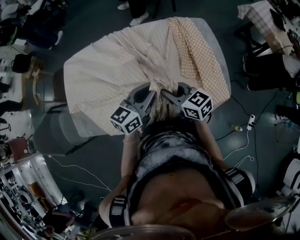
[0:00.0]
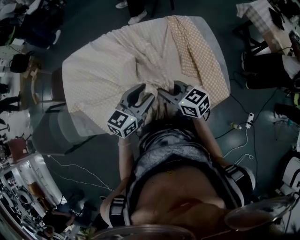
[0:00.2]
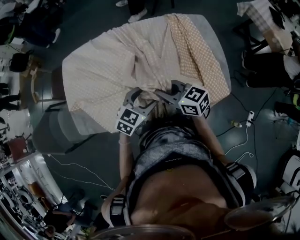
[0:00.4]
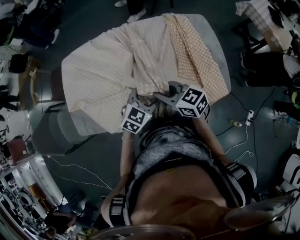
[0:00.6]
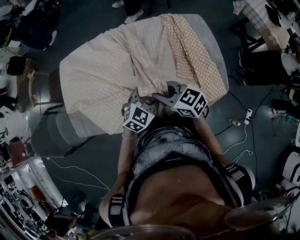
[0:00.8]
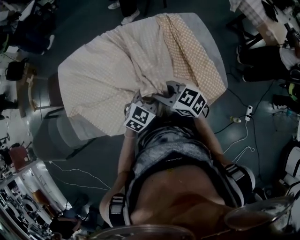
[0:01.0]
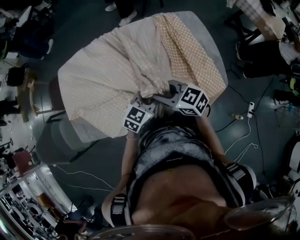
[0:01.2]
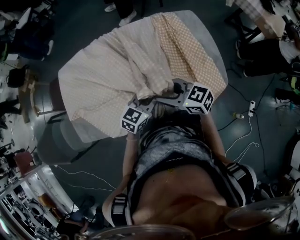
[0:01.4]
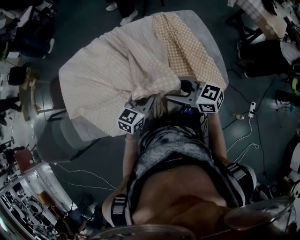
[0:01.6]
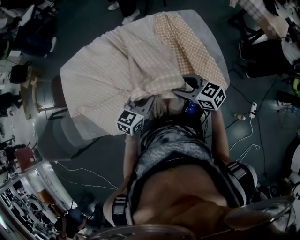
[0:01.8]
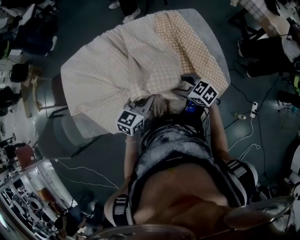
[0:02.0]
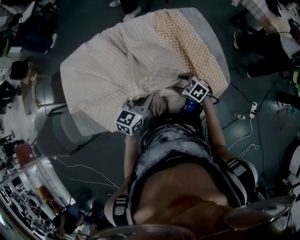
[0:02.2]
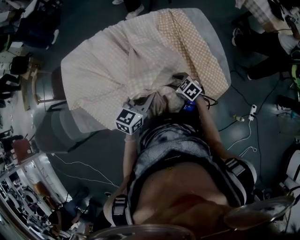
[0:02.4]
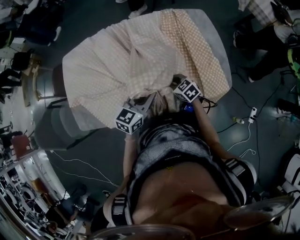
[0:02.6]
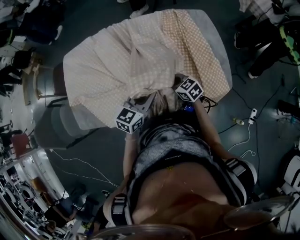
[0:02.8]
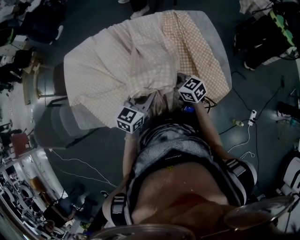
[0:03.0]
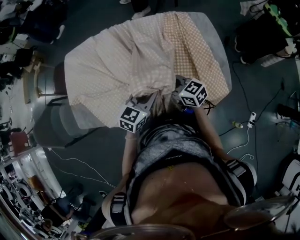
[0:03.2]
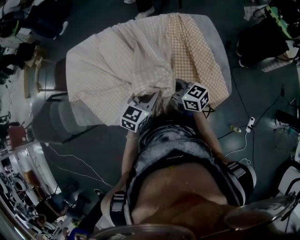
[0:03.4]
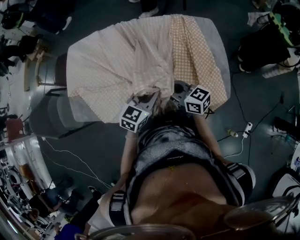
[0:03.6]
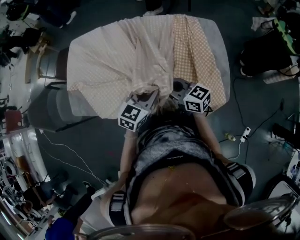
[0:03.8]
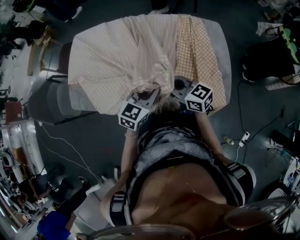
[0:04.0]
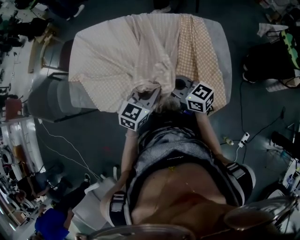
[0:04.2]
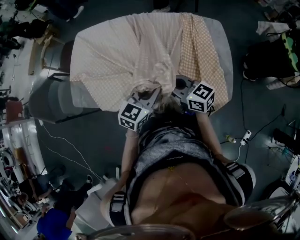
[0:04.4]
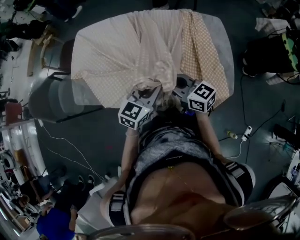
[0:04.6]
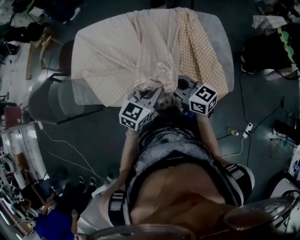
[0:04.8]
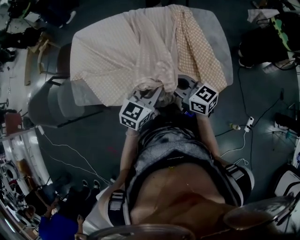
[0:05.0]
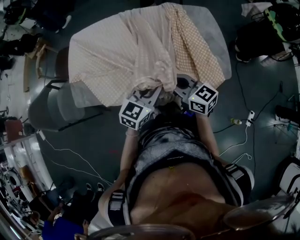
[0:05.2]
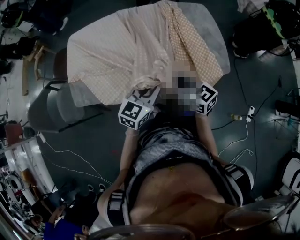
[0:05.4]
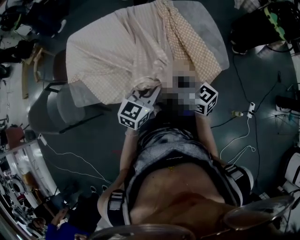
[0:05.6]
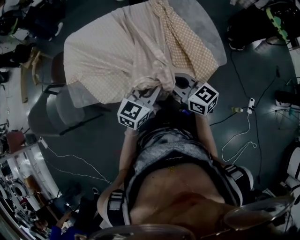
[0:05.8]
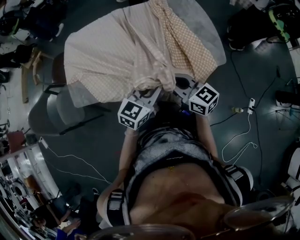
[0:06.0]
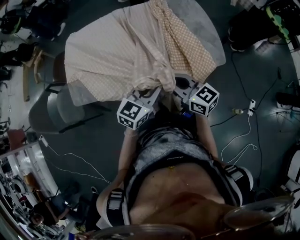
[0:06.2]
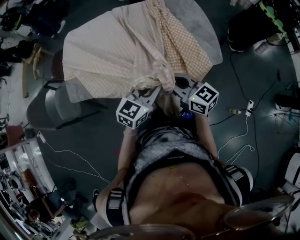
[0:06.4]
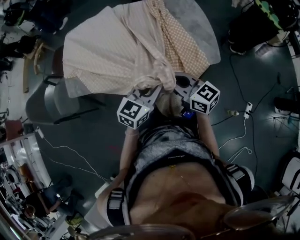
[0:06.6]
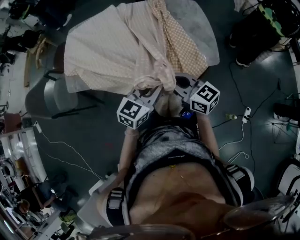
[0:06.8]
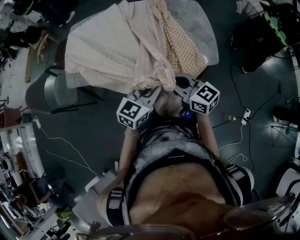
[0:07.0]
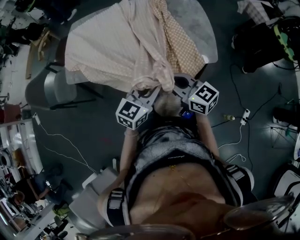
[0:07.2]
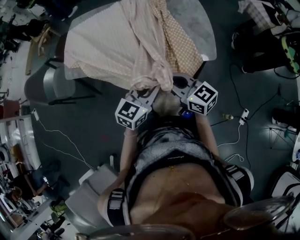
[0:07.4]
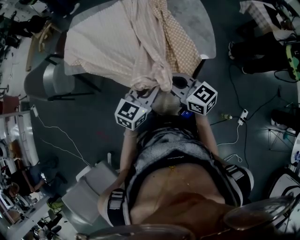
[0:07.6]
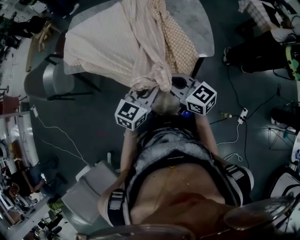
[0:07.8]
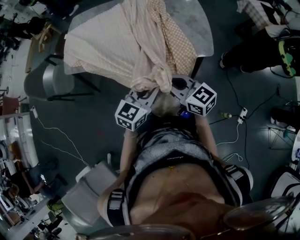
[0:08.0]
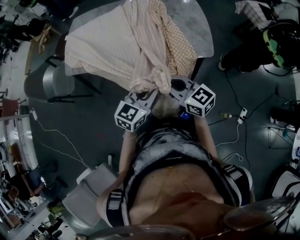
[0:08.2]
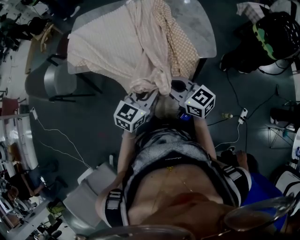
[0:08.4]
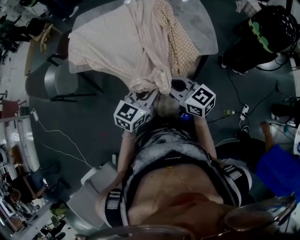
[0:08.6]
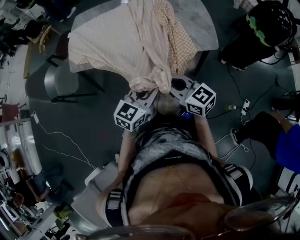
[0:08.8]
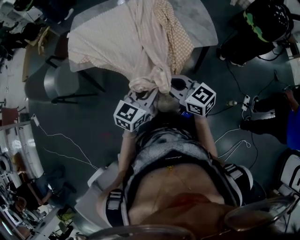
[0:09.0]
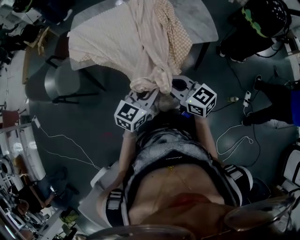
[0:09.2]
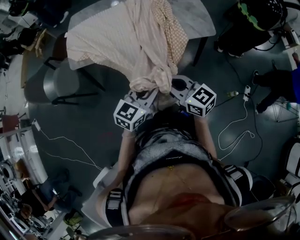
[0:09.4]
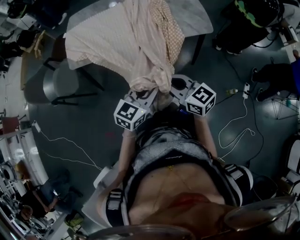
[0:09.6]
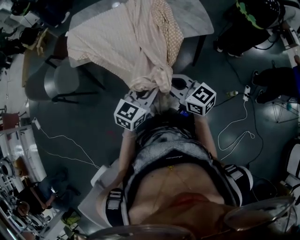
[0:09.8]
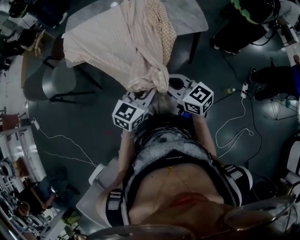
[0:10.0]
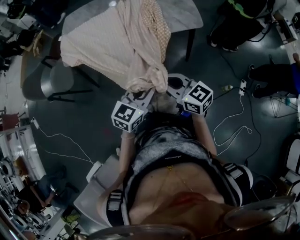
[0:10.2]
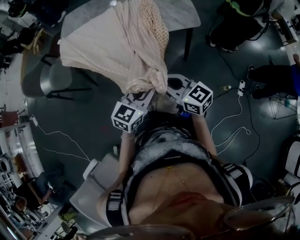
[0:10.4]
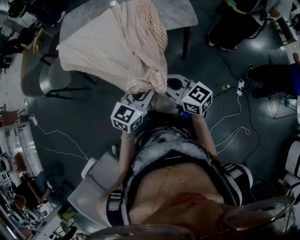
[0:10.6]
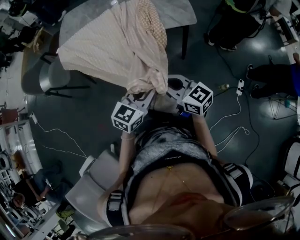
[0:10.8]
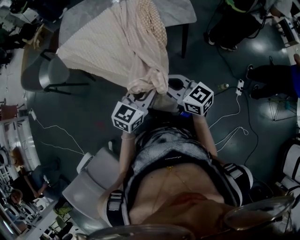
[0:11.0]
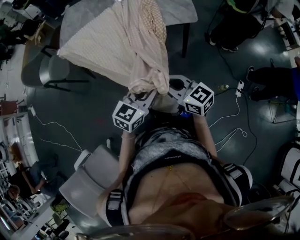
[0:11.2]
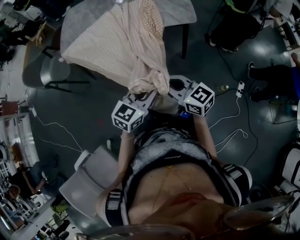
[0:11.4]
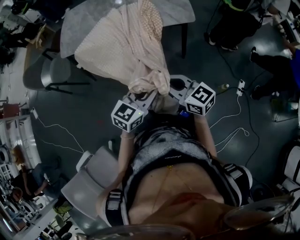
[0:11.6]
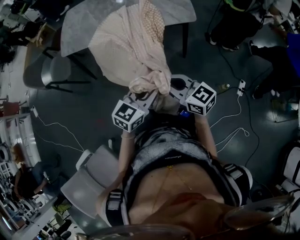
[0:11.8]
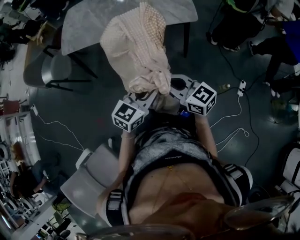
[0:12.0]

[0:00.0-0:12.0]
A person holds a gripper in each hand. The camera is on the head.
0:00.0 to 0:01.6: The left gripper heads downward, covering some 10 cm, and opens, then closes once more, while the right gripper shifts by roughly 5 cm, and opens its fingers.
0:01.6 to 0:03.0: The right gripper shifts approximately 10 cm downward, and closes its fingers.
0:03.0 to 0:04.4: The right gripper shifts about 10 cm upward and backward.
0:04.4 to 0:06.0: The two grippers go roughly 15 cm backward. The right gripper changes its angle by roughly 20 degrees.
0:06.0 to 0:07.6: Both grippers travel together backward and to the right, some 15 cm.
0:07.6 to 0:09.0: The two grippers go approximately 15 cm to the left and backward.
0:09.0 to 0:10.4: Both grippers travel together backward and to the right, approximately 15 cm.
0:10.4 to 0:12.0: Both grippers move backward and to the right, roughly 10 cm.

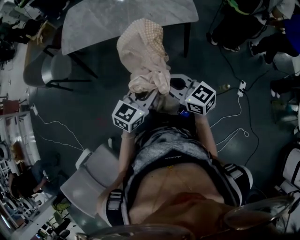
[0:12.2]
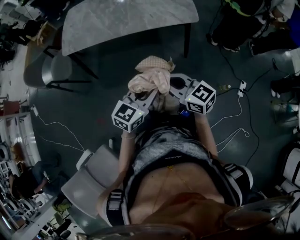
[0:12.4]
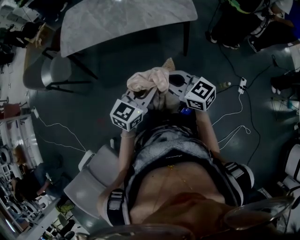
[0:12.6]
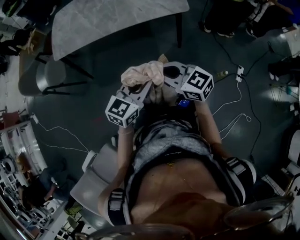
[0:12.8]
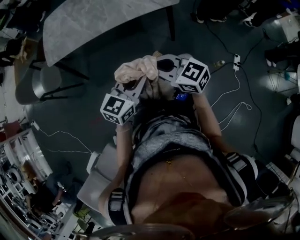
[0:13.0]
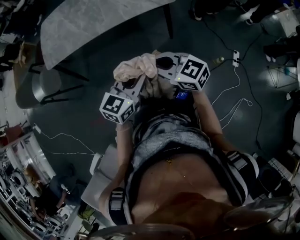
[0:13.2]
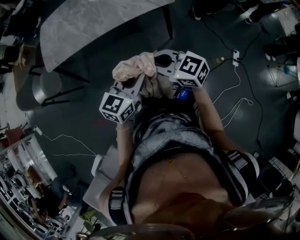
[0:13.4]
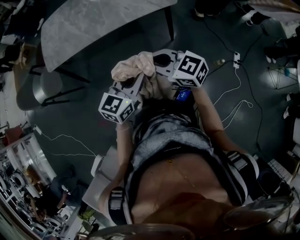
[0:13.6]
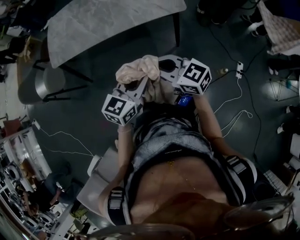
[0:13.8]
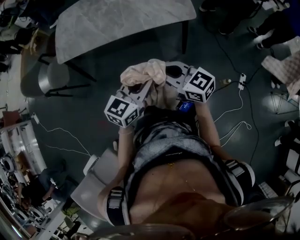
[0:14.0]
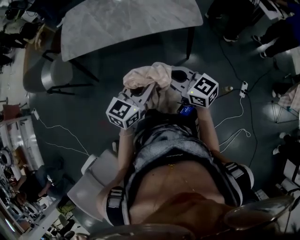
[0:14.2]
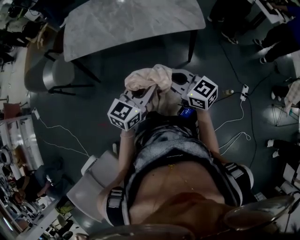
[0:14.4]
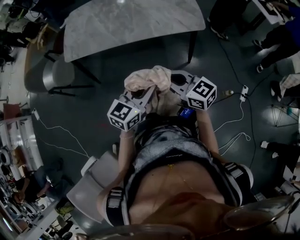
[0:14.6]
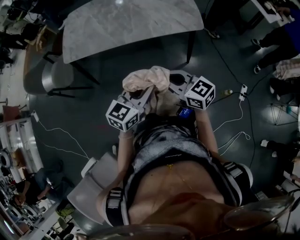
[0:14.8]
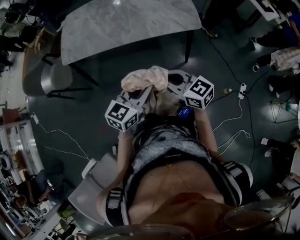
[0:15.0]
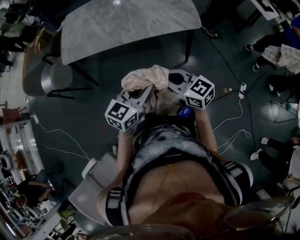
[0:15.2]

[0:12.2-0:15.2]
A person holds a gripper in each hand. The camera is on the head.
0:12.2 to 0:13.8: The two grippers go about 5 cm forward.
0:13.8 to 0:15.2: There are only small adjustments of the grippers.

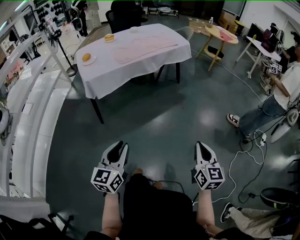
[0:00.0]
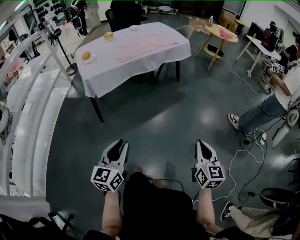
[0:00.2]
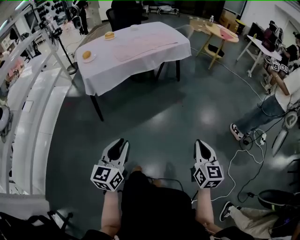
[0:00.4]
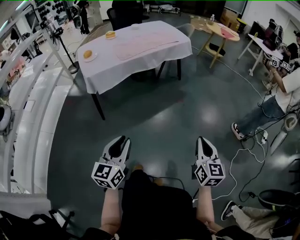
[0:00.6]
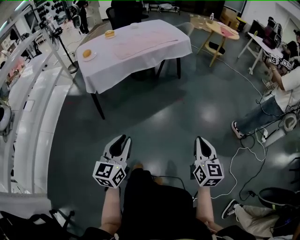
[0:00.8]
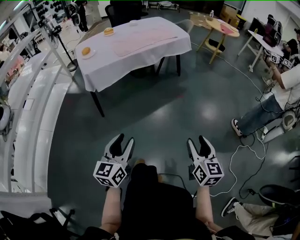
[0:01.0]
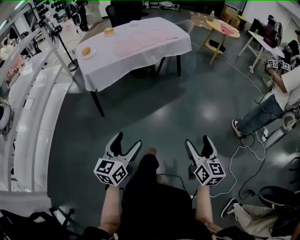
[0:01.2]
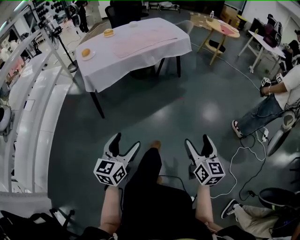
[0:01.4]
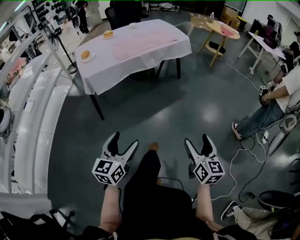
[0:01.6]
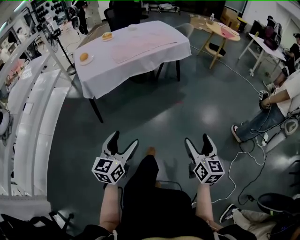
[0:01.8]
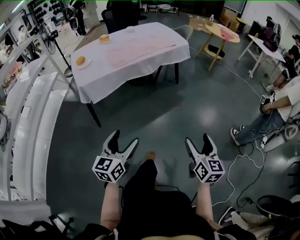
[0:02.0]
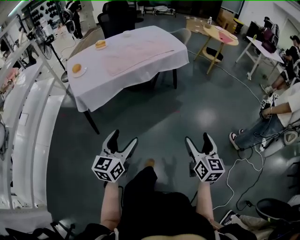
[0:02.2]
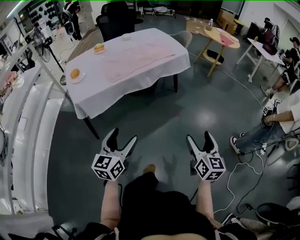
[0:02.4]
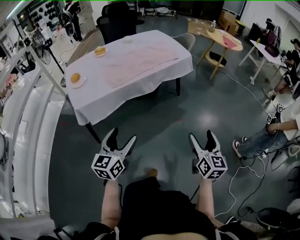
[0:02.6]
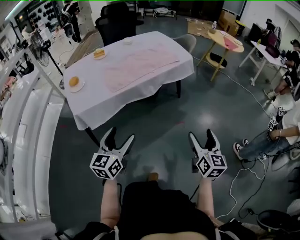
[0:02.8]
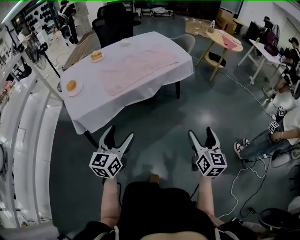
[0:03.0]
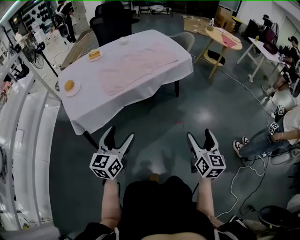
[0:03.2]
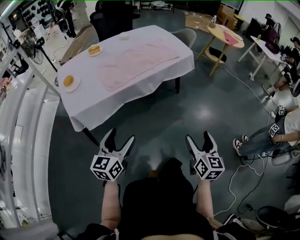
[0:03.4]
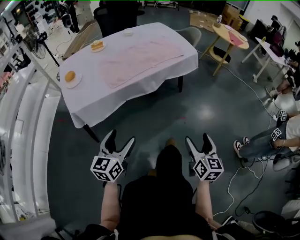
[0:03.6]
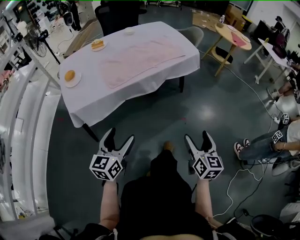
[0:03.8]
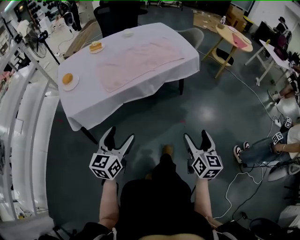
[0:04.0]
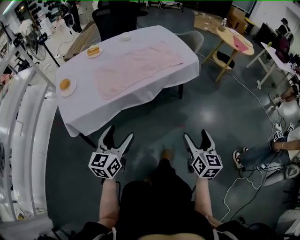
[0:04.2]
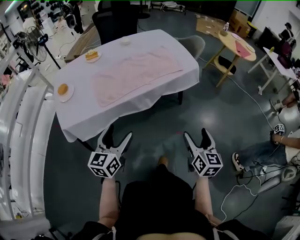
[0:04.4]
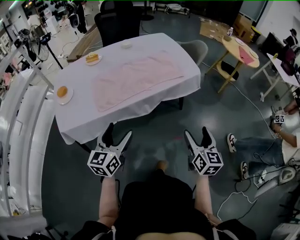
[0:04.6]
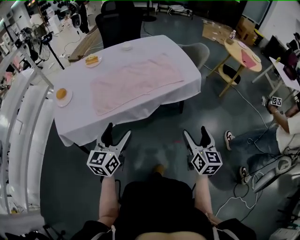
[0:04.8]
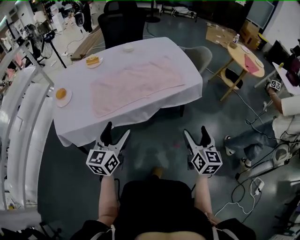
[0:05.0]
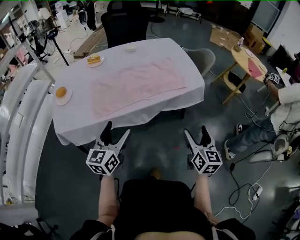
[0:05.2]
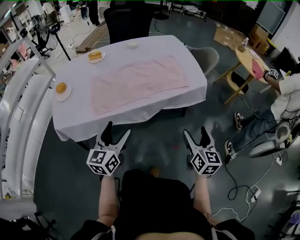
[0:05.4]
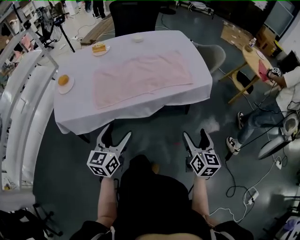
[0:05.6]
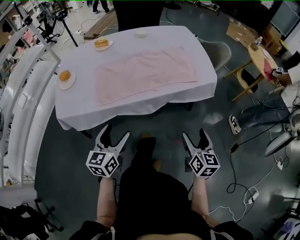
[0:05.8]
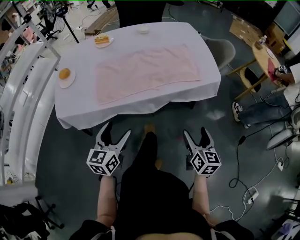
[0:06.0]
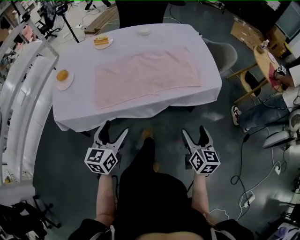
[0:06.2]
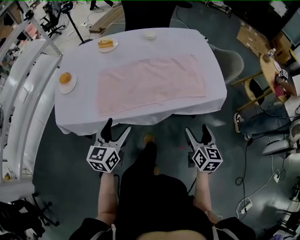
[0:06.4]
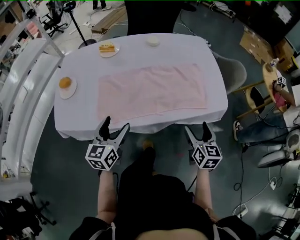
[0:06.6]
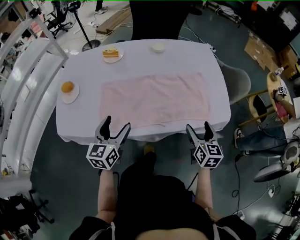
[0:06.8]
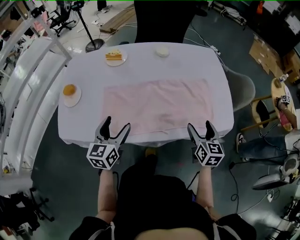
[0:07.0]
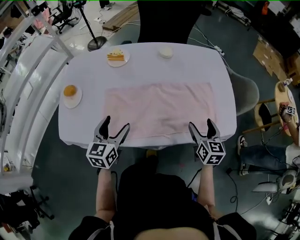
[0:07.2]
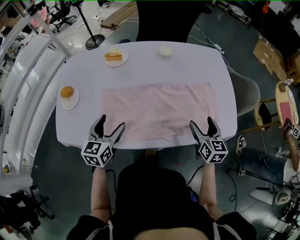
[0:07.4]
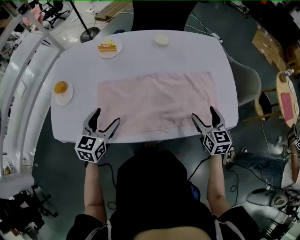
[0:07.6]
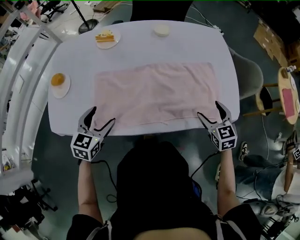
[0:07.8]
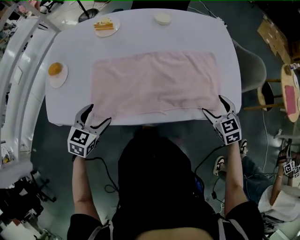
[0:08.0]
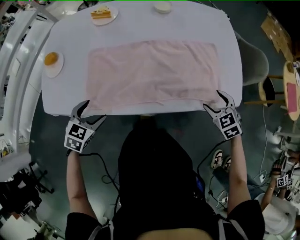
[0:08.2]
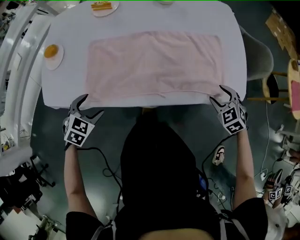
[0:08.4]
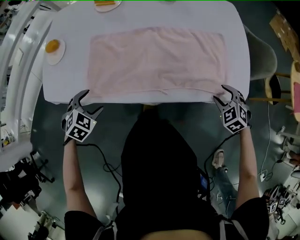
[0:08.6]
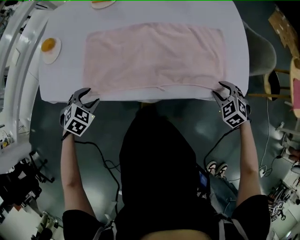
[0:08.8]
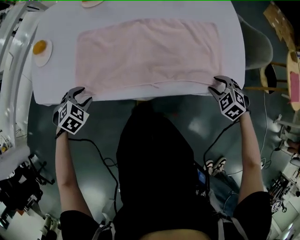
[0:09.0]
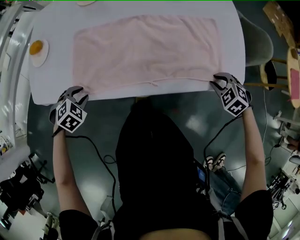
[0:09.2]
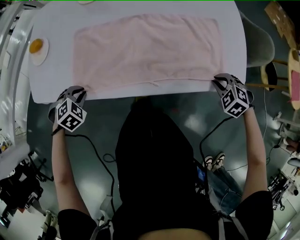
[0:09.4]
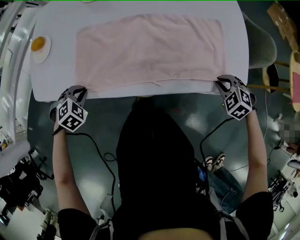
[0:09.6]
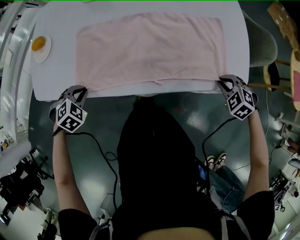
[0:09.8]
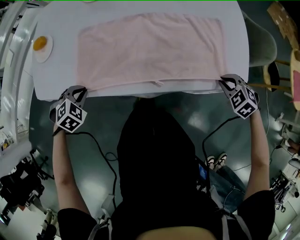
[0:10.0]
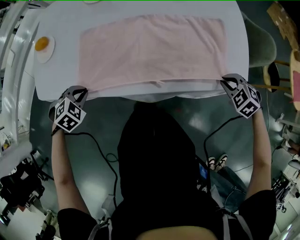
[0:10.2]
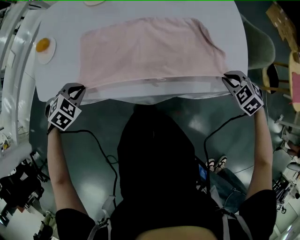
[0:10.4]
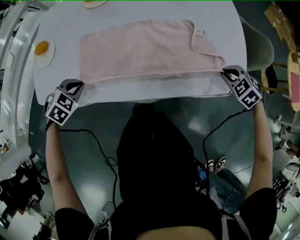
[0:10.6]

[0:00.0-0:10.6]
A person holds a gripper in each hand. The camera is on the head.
0:00.0 to 0:01.6: The right gripper opens up, while the left gripper moves about 5 cm, and opens.
0:01.6 to 0:03.0: The two grippers go some 40 cm forward.
0:03.0 to 0:04.6: Both grippers move forward, some 25 cm.
0:04.6 to 0:06.0: The left gripper moves forward and downward, about 10 cm, while the right gripper goes approximately 15 cm forward and downward.
0:06.0 to 0:07.6: The grippers both shift forward by some 35 cm. The right gripper turns by about 30 degrees.
0:07.6 to 0:09.0: The left gripper heads downward and backward, covering approximately 20 cm, tips its fingers downward by approximately 40 degrees, and closes up; the right gripper heads downward and to the right, covering approximately 15 cm, tilts its fingers about 40 degrees downward, and closes.
0:09.0 to 0:10.6: The left gripper shifts by about 5 cm, and closes up. The right gripper shifts by roughly 10 cm.
